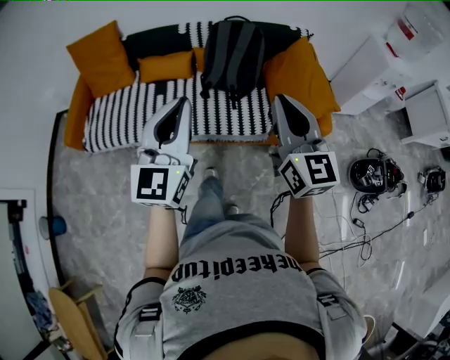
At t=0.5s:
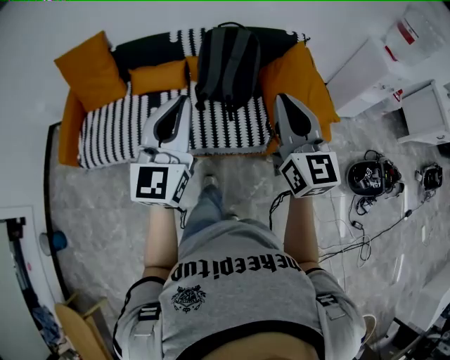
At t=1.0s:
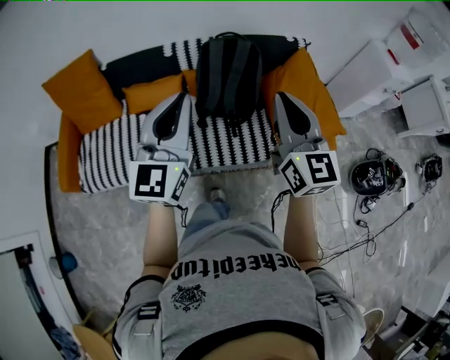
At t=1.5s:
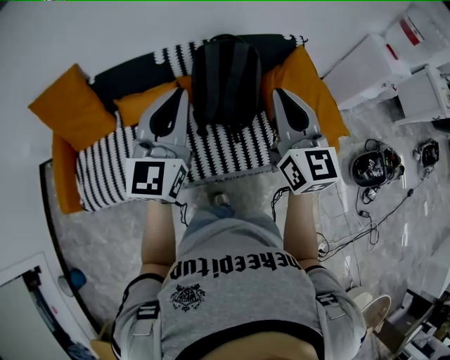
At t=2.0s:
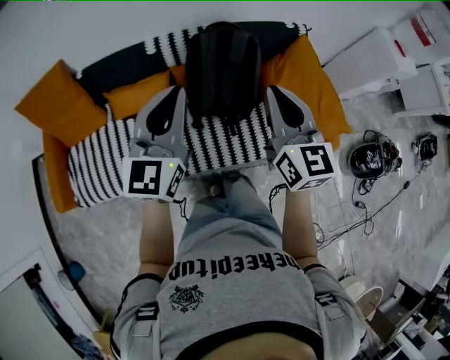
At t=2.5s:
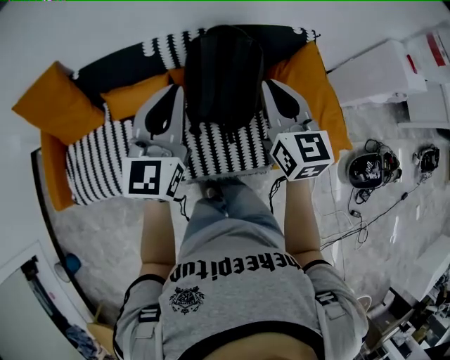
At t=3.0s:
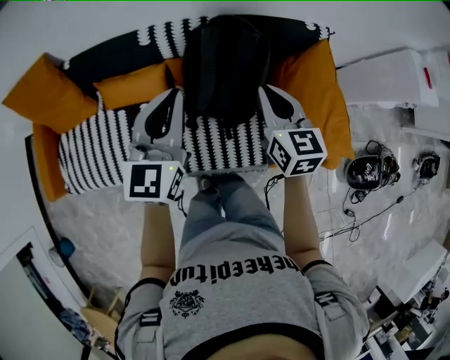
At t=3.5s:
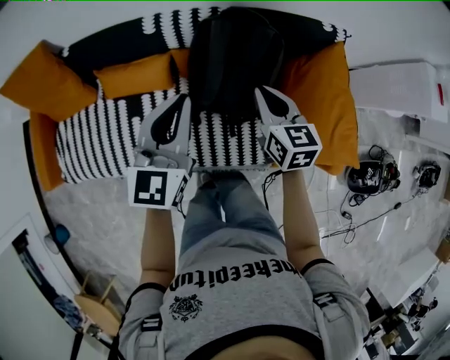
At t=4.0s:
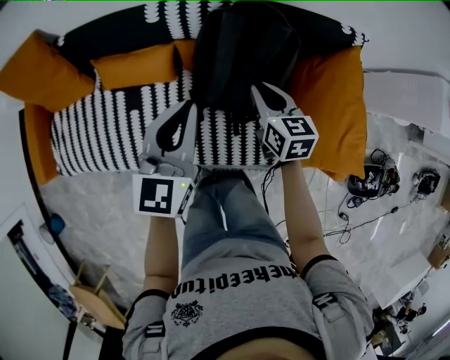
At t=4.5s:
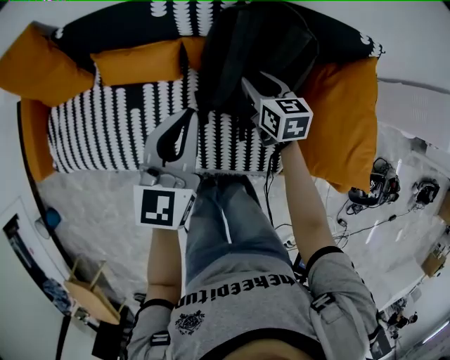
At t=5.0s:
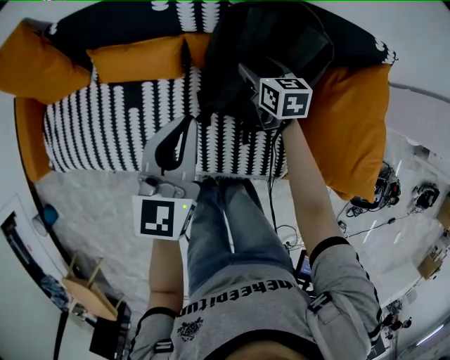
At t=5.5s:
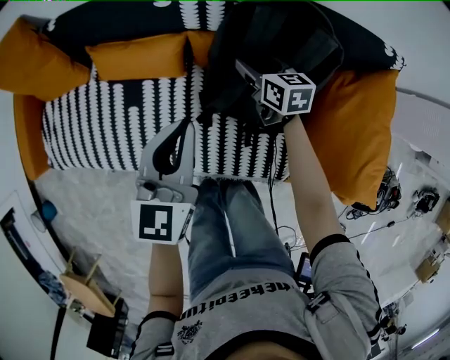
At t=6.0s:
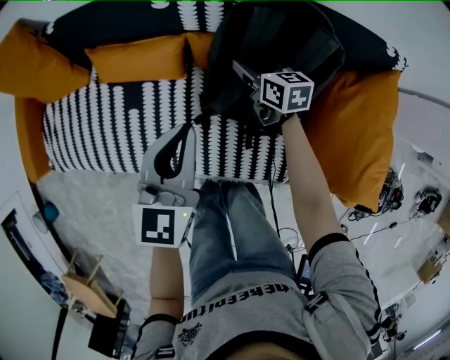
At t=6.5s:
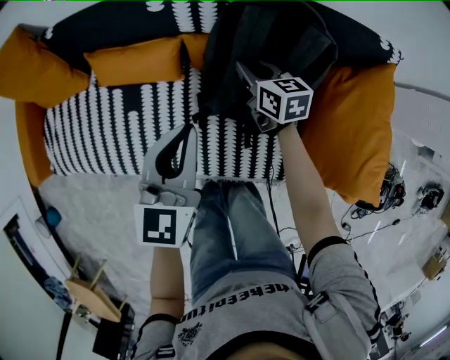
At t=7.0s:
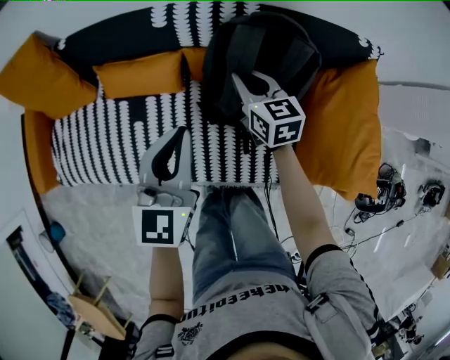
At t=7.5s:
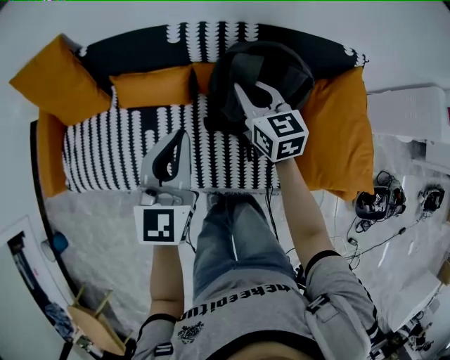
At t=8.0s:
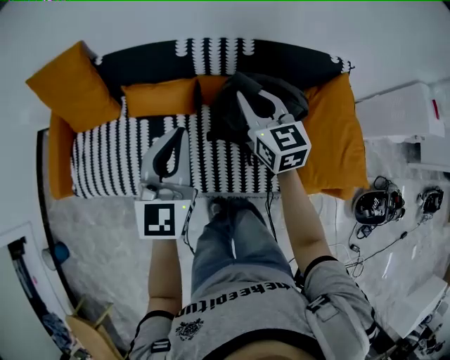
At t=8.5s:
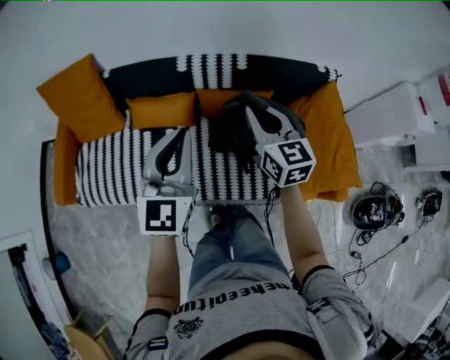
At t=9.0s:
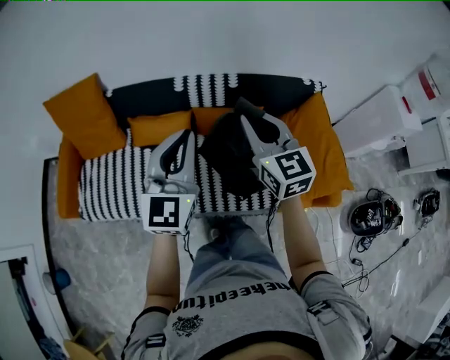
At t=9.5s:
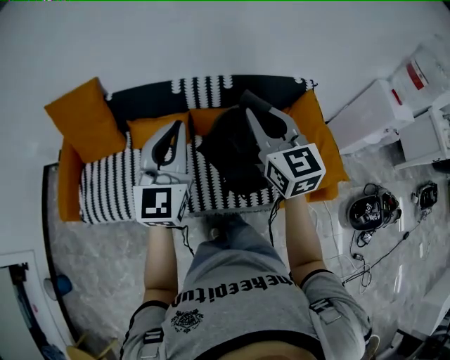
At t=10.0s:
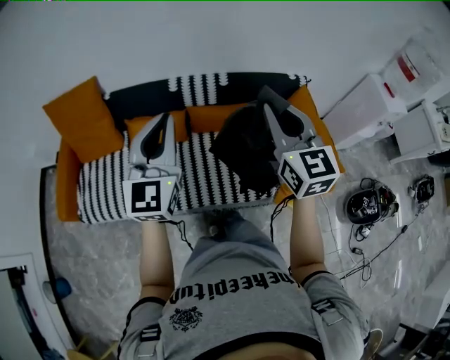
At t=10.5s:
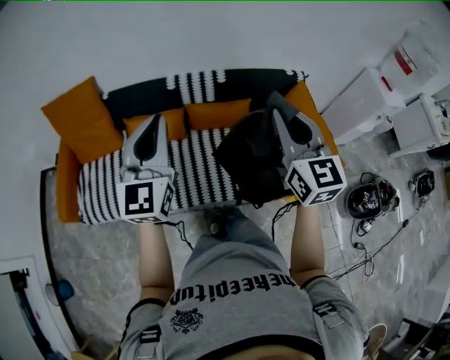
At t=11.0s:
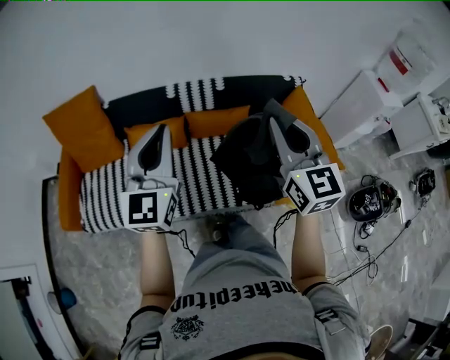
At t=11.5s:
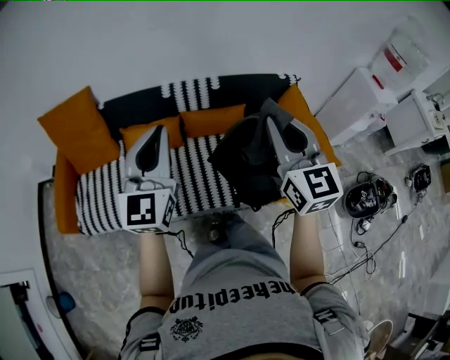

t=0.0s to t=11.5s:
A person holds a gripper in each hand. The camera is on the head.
t=0.0s to t=2.0s: Both grippers travel together forward, some 30 cm.
t=2.0s to t=4.0s: The right gripper travels downward and forward by about 30 cm, and turns by approximately 30 degrees; the left gripper moves downward and forward, about 20 cm.
t=4.0s to t=6.0s: The right gripper goes some 20 cm downward and forward, and opens; the left gripper goes approximately 10 cm downward.
t=6.0s to t=7.5s: The right gripper heads upward and backward, covering approximately 25 cm, changes its angle by roughly 30 degrees, and closes; the left gripper shifts about 10 cm upward.
t=7.5s to t=9.5s: The left gripper travels upward and backward by roughly 20 cm, while the right gripper goes about 30 cm upward and backward, and swivels some 20 degrees.
t=9.5s to t=11.5s: The right gripper travels backward by some 10 cm. The left gripper changes place by some 5 cm.

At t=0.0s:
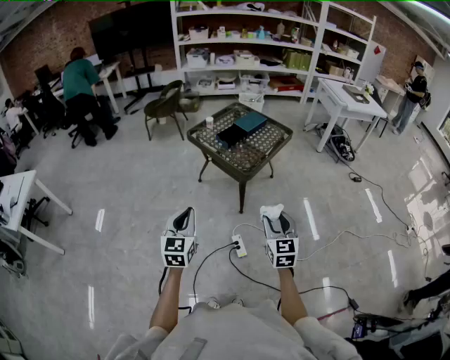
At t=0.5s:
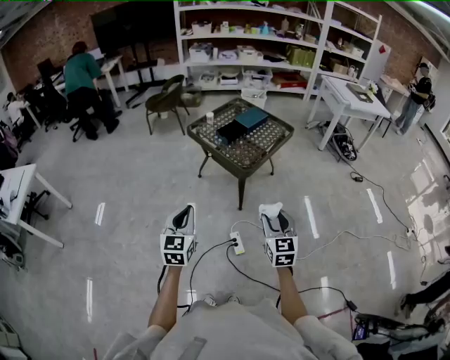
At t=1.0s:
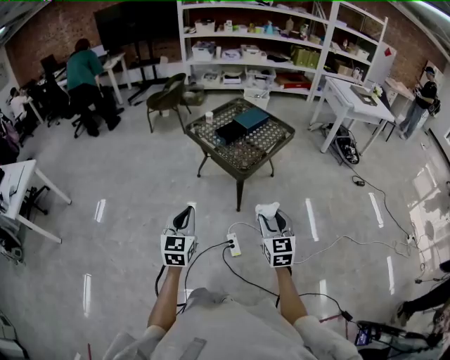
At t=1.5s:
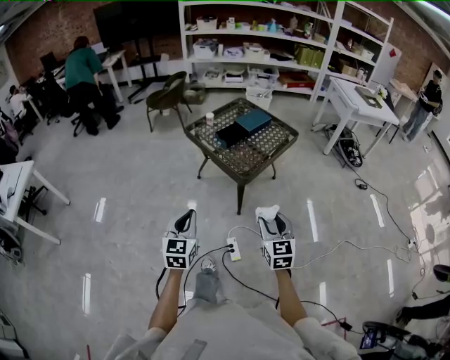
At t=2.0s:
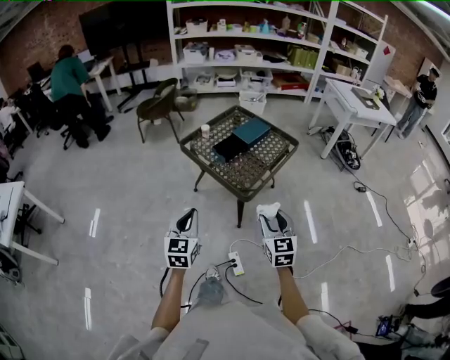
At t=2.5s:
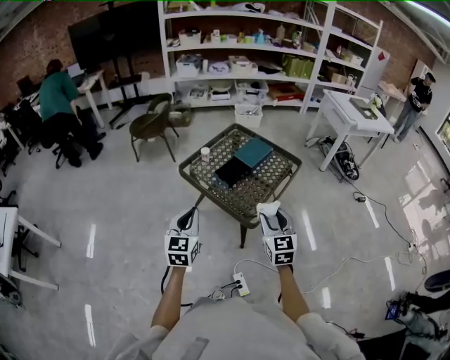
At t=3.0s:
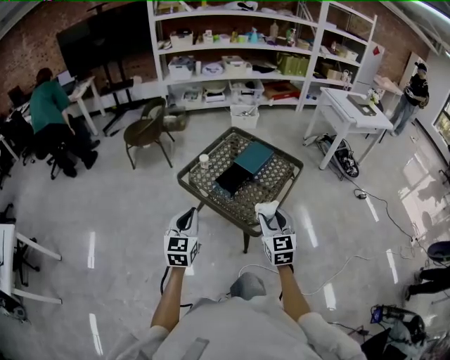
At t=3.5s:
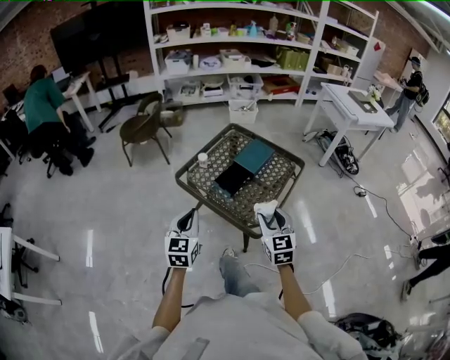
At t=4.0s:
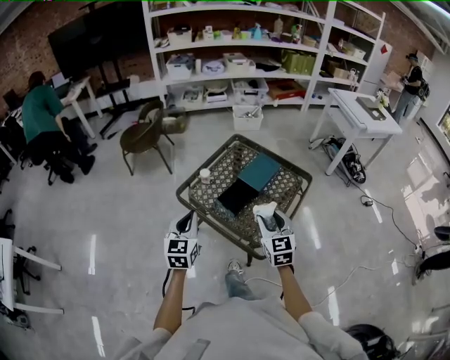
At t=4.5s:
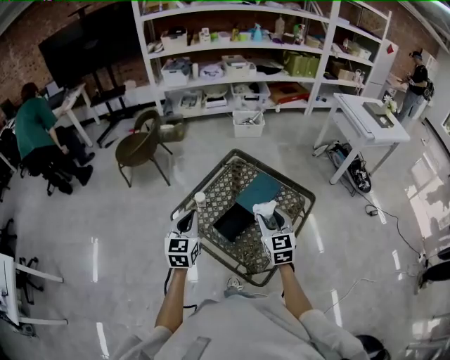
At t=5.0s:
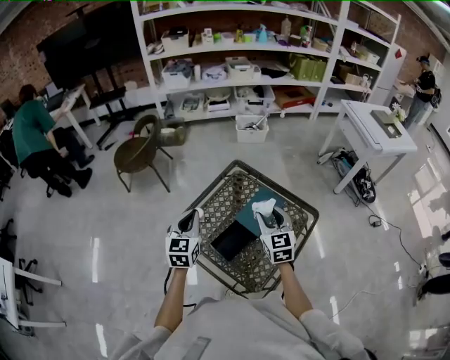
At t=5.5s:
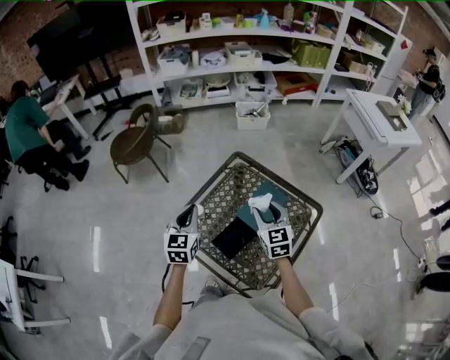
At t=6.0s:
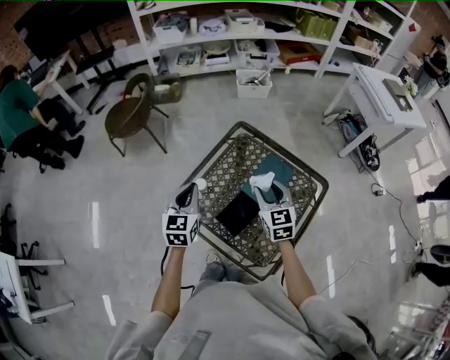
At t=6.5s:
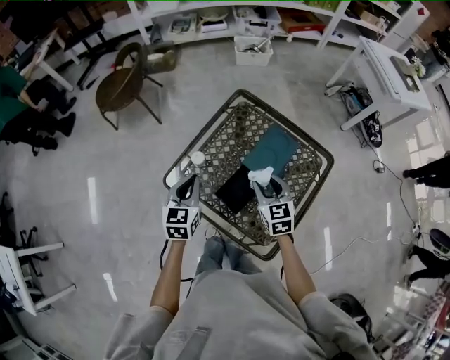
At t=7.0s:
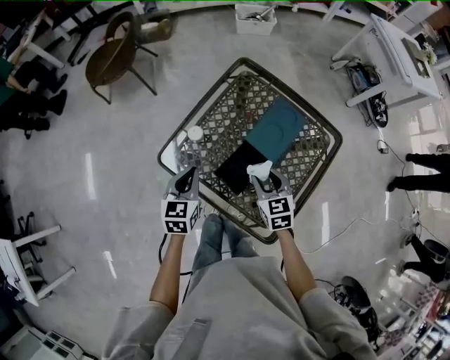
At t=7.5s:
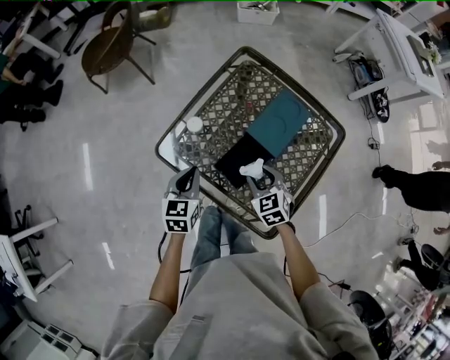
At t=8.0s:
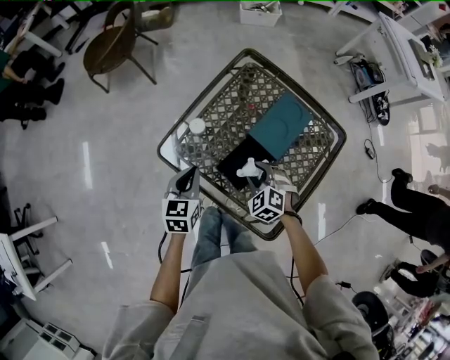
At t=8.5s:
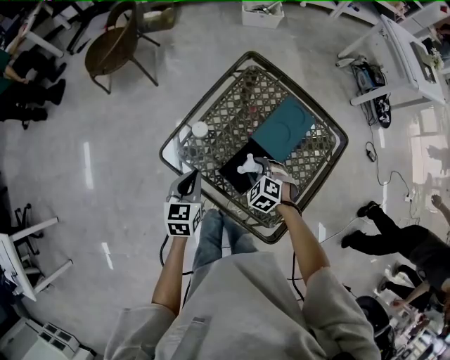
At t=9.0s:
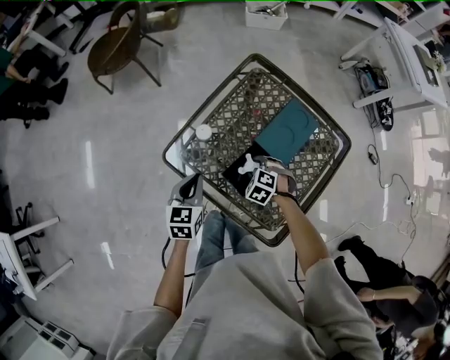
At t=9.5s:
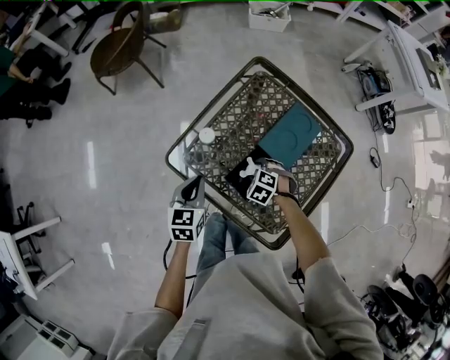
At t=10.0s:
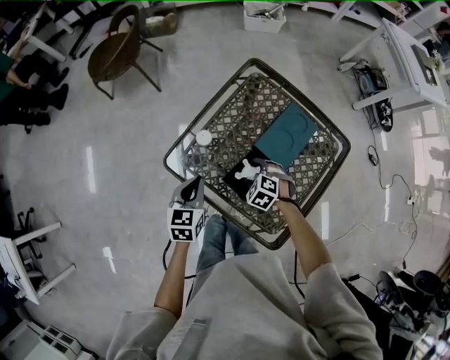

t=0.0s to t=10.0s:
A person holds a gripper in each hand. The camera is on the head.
t=0.0s to t=2.0s: Both grippers move forward, approximately 20 cm.
t=2.0s to t=4.0s: Both grippers travel together forward, roughly 35 cm.
t=4.0s to t=6.0s: The two grippers go about 30 cm forward.
t=6.0s to t=8.0s: Both grippers move downward and backward, about 20 cm. The right gripper angles its fingers downward, by some 30 degrees.
t=8.0s to t=10.0s: The right gripper is displaced downward by about 5 cm, and opens.

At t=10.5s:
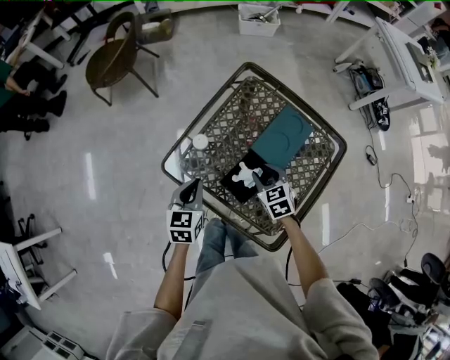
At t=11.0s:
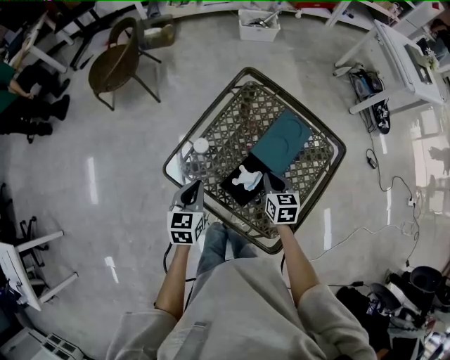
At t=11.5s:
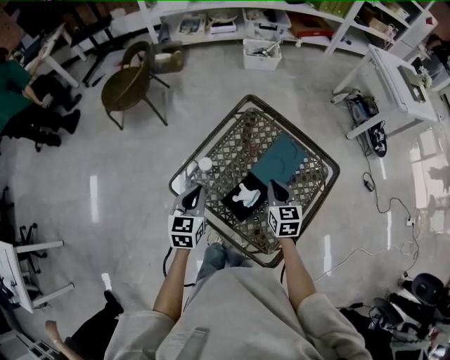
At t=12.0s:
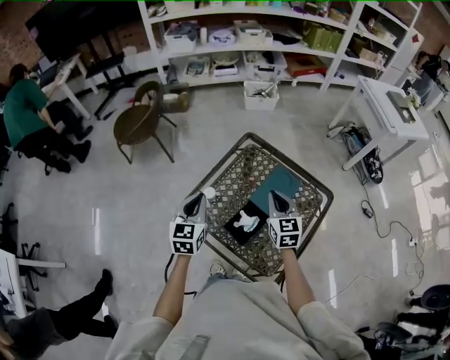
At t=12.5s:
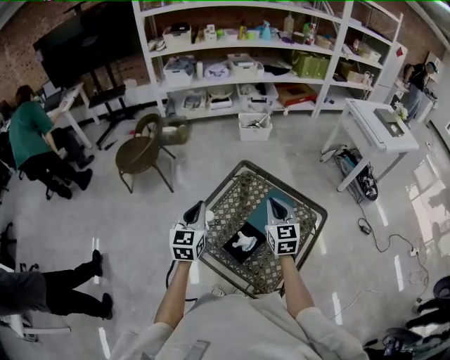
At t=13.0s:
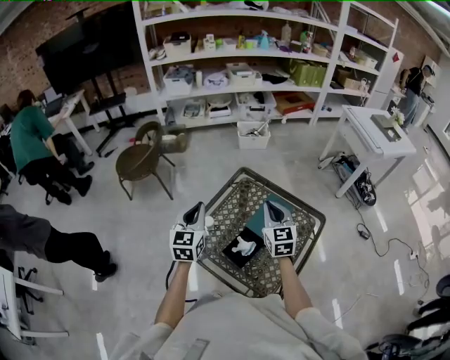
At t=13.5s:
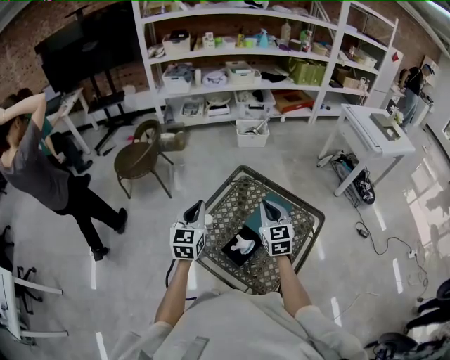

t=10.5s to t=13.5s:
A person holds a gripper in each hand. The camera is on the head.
t=10.5s to t=12.0s: The two grippers go about 20 cm upward. The right gripper changes its angle by about 30 degrees, and closes up.
t=12.0s to t=13.5s: The two grippers go roughly 5 cm upward.

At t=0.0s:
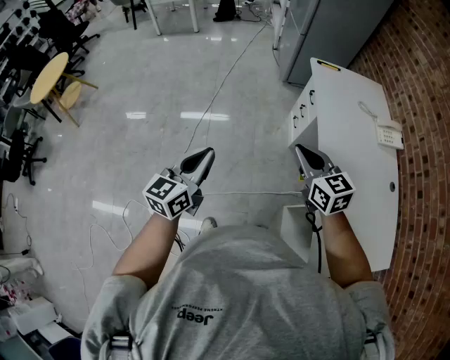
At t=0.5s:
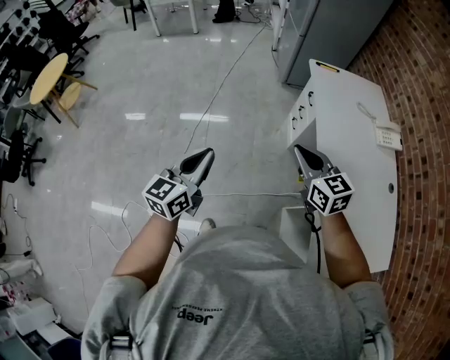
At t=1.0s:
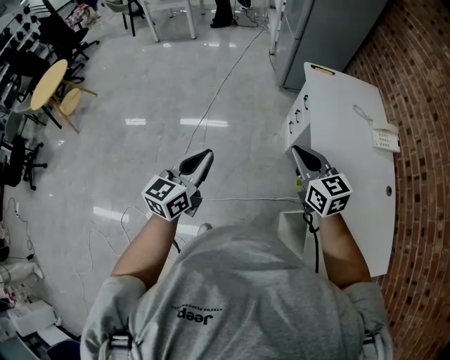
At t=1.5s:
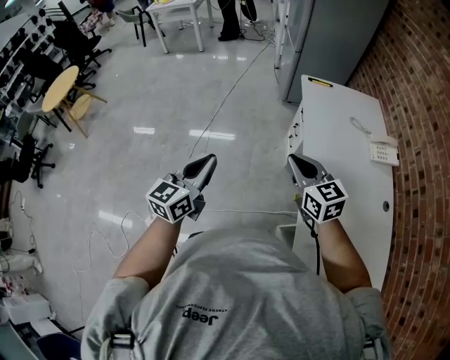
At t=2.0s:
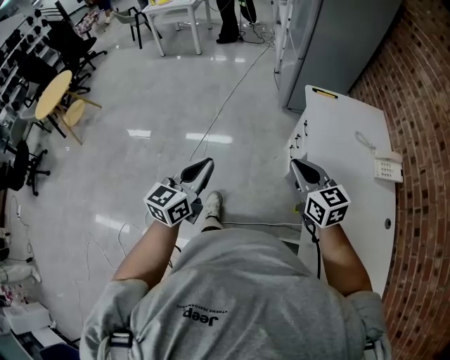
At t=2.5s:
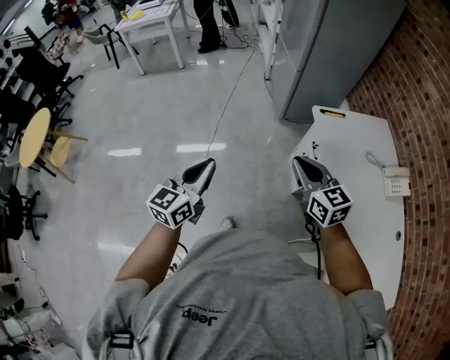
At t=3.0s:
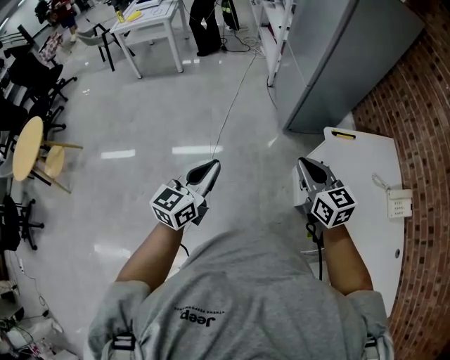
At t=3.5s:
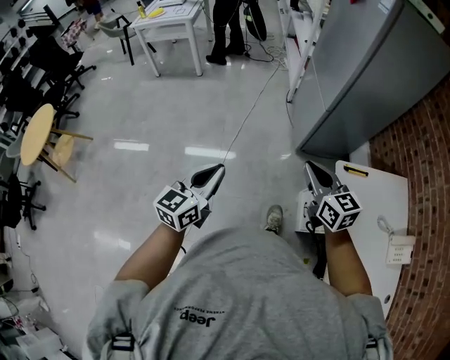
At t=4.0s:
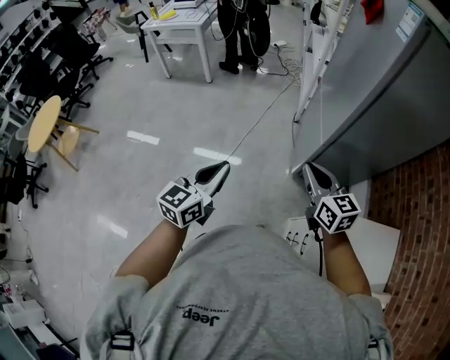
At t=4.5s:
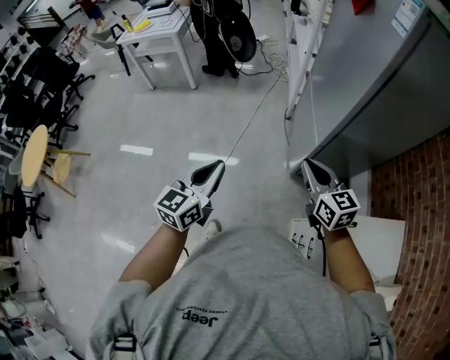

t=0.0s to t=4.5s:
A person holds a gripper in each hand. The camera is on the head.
t=0.0s to t=2.0s: The two grippers go about 15 cm forward and to the right.
t=2.0s to t=4.5s: Both grippers are carried forward, some 70 cm.
